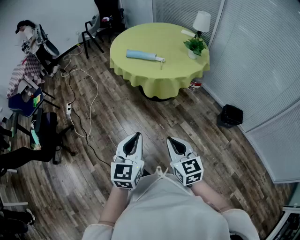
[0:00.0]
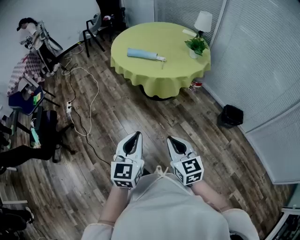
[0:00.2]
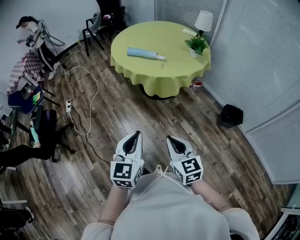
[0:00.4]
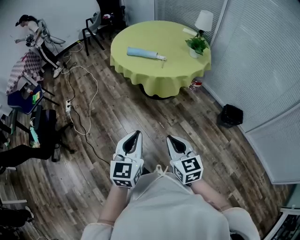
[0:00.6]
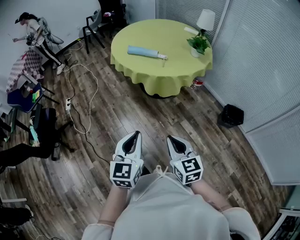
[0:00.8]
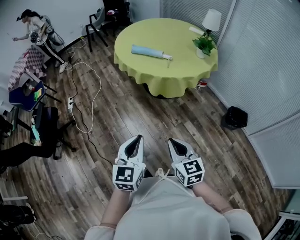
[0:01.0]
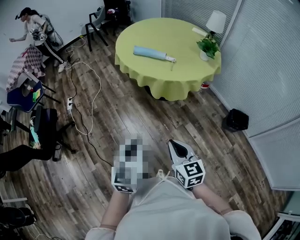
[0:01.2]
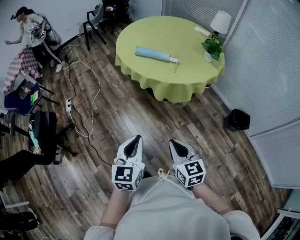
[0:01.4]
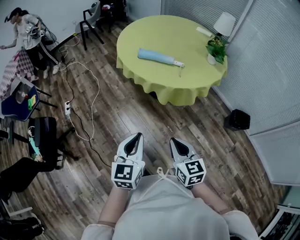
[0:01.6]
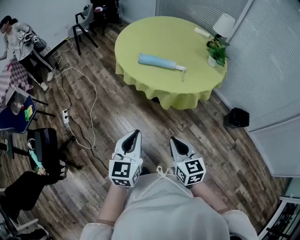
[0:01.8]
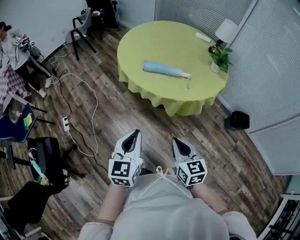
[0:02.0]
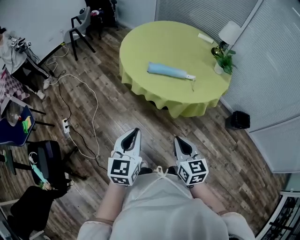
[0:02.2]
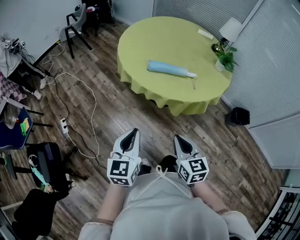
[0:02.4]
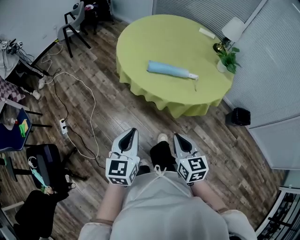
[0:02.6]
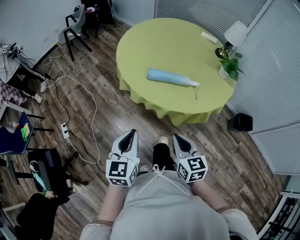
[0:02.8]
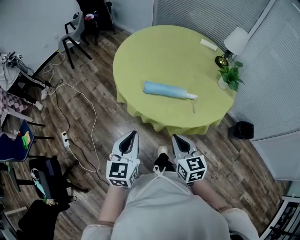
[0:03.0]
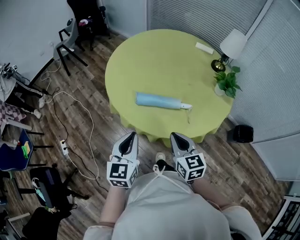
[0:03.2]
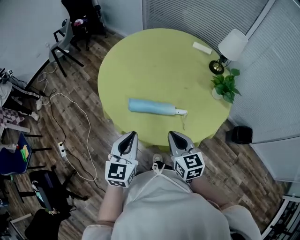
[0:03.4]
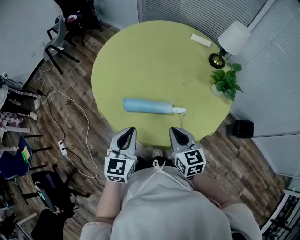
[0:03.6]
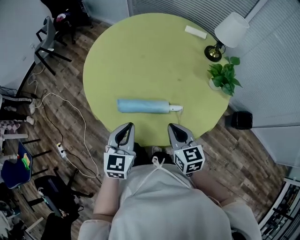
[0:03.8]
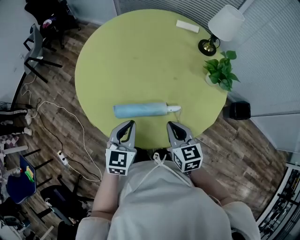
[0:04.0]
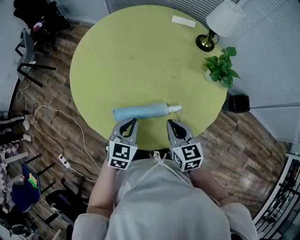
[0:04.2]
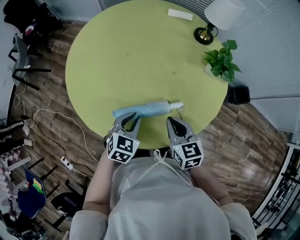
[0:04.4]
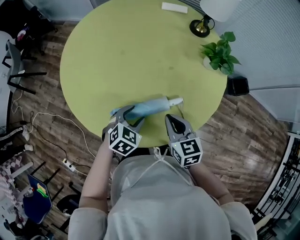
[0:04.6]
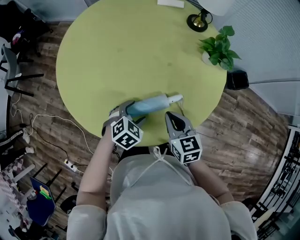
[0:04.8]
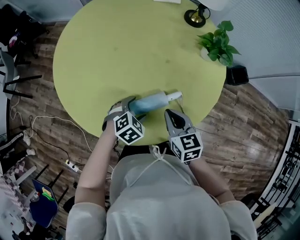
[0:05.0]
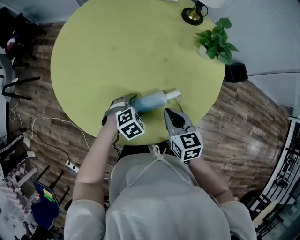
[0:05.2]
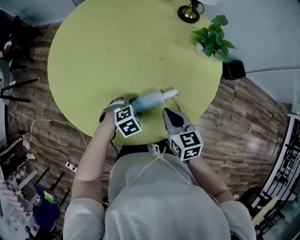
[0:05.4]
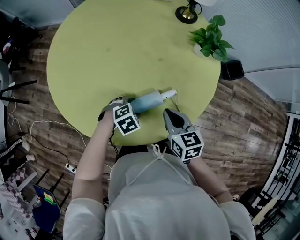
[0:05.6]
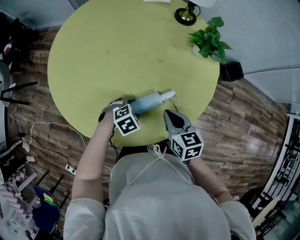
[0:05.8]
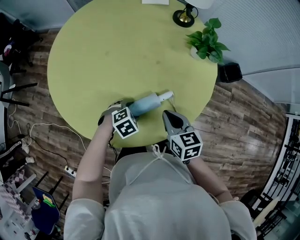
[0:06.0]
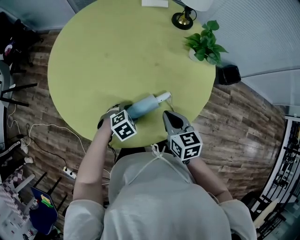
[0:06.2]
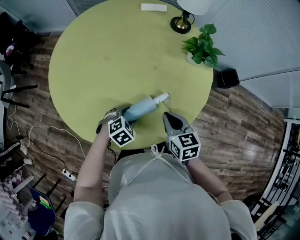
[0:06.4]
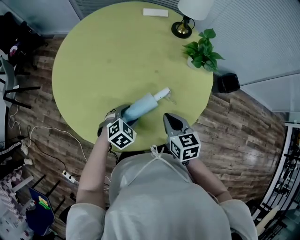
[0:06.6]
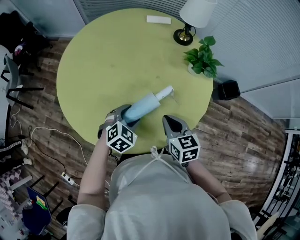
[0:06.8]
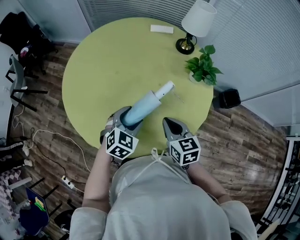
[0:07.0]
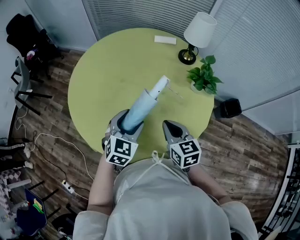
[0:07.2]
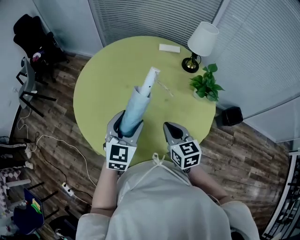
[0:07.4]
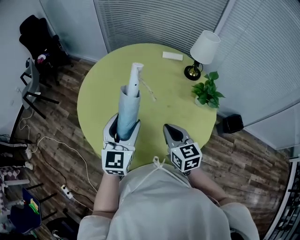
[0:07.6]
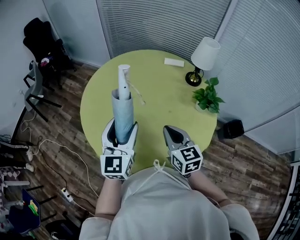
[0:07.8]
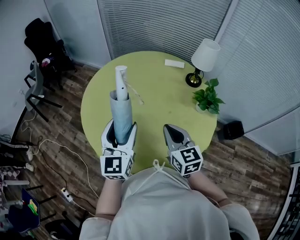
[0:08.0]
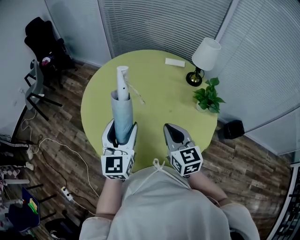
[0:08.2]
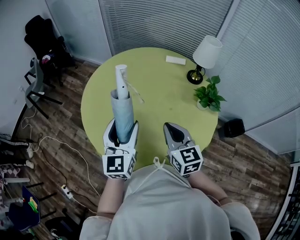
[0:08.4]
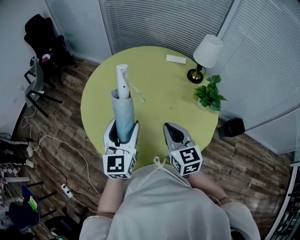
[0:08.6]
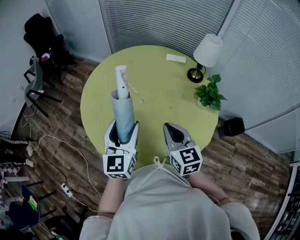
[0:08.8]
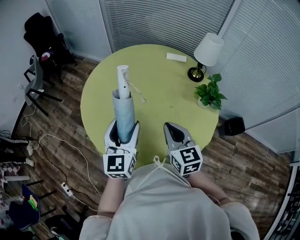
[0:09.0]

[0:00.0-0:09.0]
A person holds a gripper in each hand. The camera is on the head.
0:00.0 to 0:01.6: Both grippers move forward and to the left, roughly 25 cm.
0:01.6 to 0:03.0: The right gripper goes approximately 30 cm forward. The left gripper goes approximately 35 cm forward and to the left.
0:03.0 to 0:04.4: The right gripper ends up about 30 cm from where it was; the left gripper moves about 40 cm, and changes its angle by approximately 50 degrees.
0:04.4 to 0:06.0: The right gripper changes place by roughly 5 cm, while the left gripper moves downward, approximately 10 cm, rotates roughly 50 degrees, and opens its fingers.
0:06.0 to 0:07.6: The right gripper shifts some 15 cm upward, and turns by about 20 degrees. The left gripper heads upward, covering roughly 35 cm, and tilts its fingers about 60 degrees upward.
0:07.6 to 0:09.0: The grippers stay close to where they were, moving slightly.

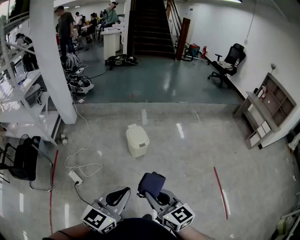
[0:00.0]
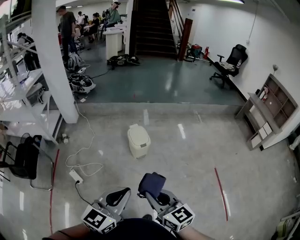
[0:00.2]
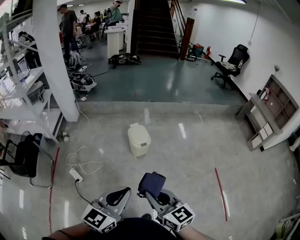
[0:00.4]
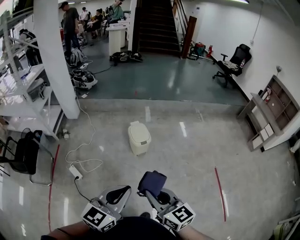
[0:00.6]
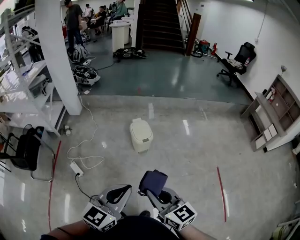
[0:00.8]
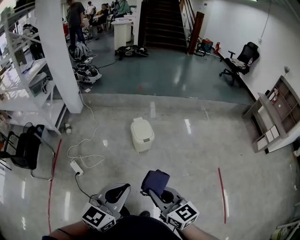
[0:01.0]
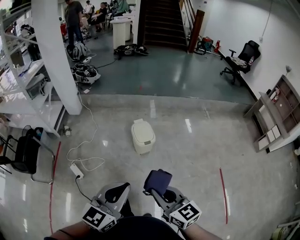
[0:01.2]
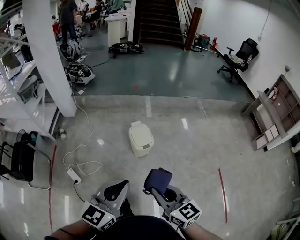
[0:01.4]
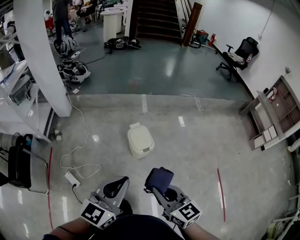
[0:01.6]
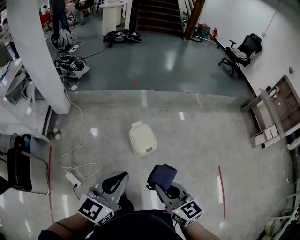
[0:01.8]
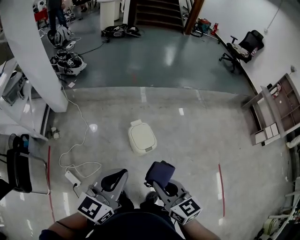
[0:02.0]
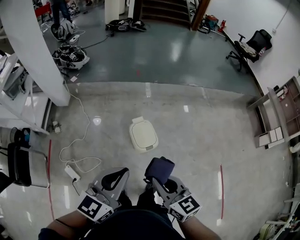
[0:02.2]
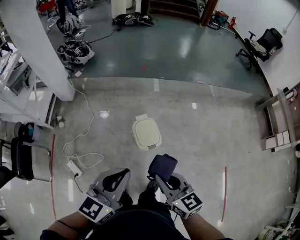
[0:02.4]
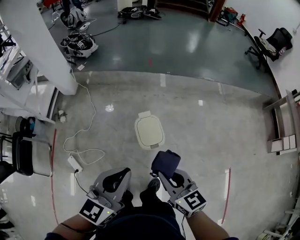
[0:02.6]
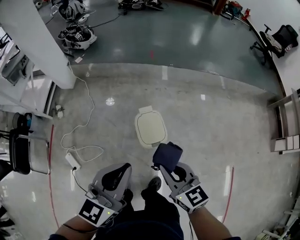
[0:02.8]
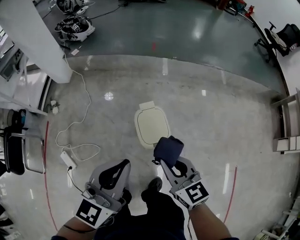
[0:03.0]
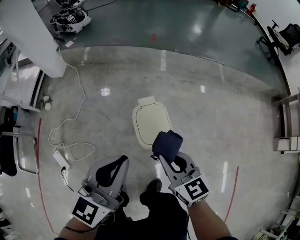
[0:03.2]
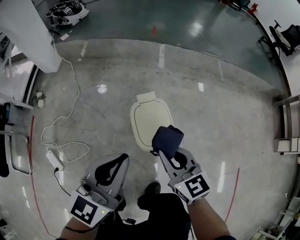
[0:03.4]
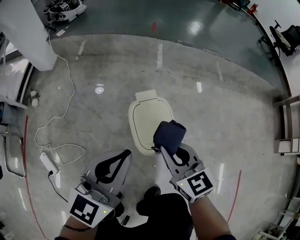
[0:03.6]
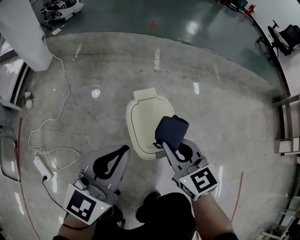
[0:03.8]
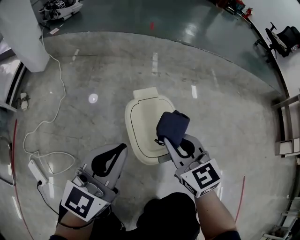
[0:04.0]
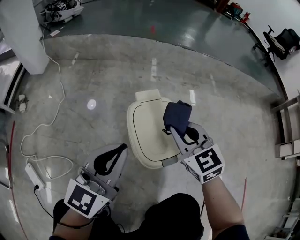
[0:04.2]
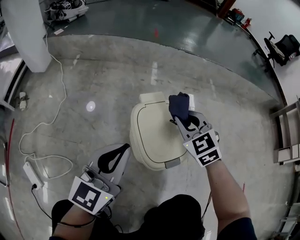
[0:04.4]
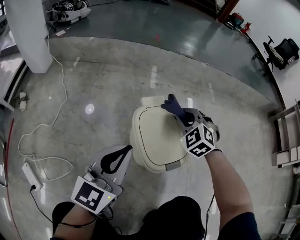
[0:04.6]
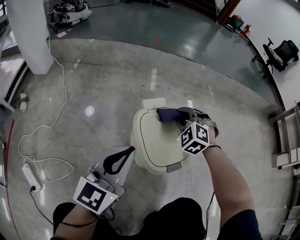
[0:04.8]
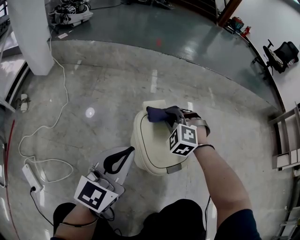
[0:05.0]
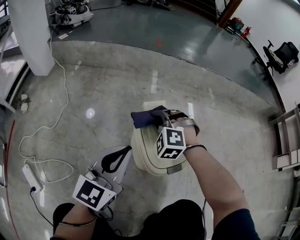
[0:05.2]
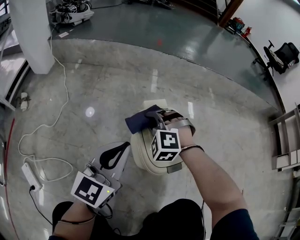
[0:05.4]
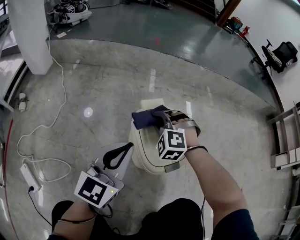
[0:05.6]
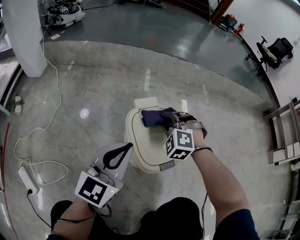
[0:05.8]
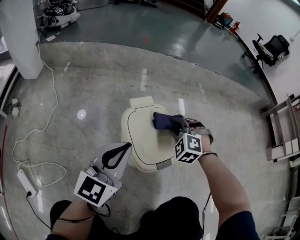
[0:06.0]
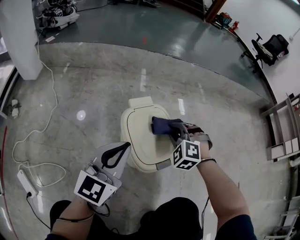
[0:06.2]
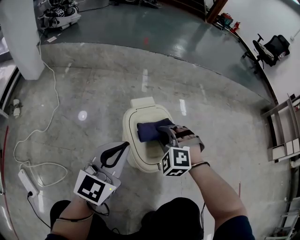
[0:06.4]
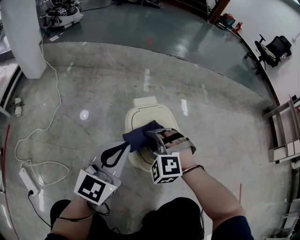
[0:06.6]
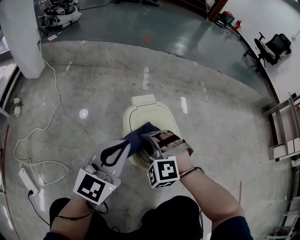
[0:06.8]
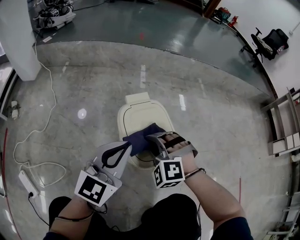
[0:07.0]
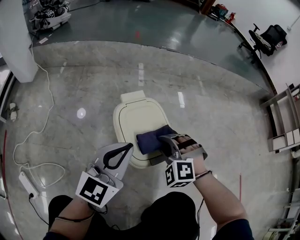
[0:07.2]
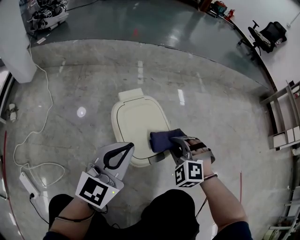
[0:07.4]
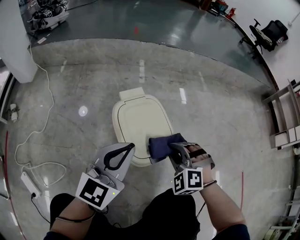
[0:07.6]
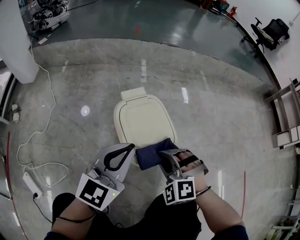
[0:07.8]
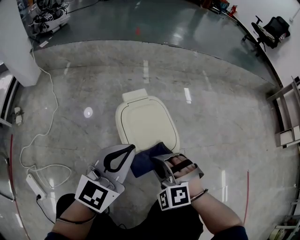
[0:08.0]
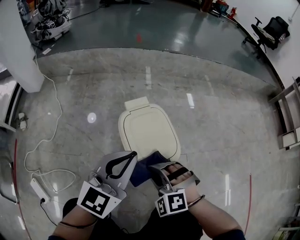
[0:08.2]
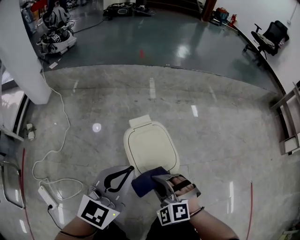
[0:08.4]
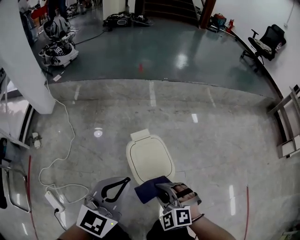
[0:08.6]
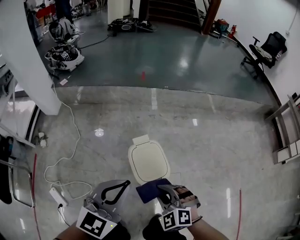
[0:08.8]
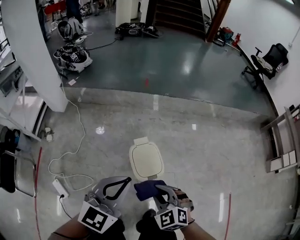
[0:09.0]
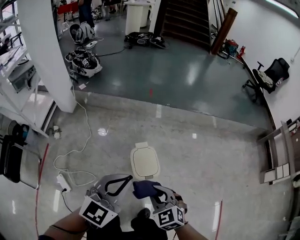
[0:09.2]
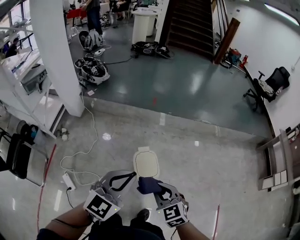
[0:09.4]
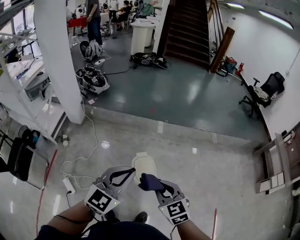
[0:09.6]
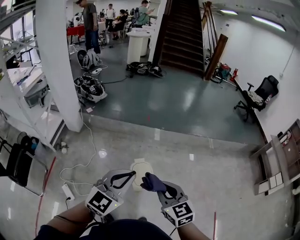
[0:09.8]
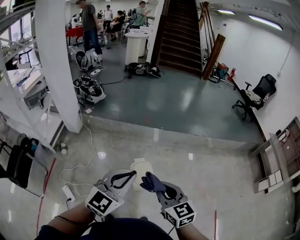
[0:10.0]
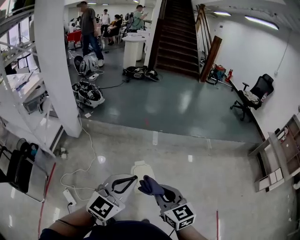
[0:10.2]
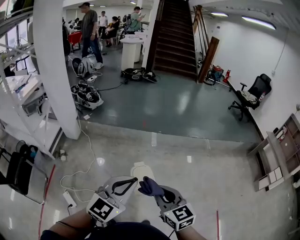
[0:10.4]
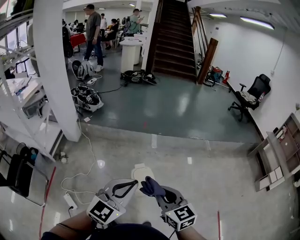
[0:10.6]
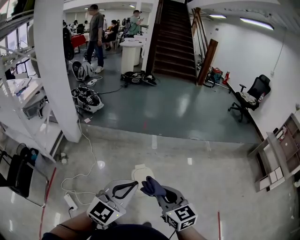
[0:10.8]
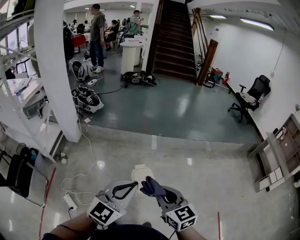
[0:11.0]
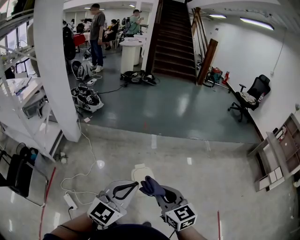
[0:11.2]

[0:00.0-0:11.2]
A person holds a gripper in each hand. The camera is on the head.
0:00.0 to 0:01.6: The two grippers go about 25 cm forward.
0:01.6 to 0:03.2: Both grippers travel together forward and downward, some 50 cm.
0:03.2 to 0:04.8: The left gripper goes about 30 cm downward, while the right gripper travels downward and forward by roughly 40 cm, and rolls counterclockwise, seen from behind, by approximately 60 degrees.
0:04.8 to 0:06.4: The right gripper moves left and right over about 15 cm, changing direction 2 times.
0:06.4 to 0:08.0: The left gripper goes about 5 cm to the right, while the right gripper swings left and right, roughly 15 cm each way, with 2 reversals.
0:08.0 to 0:09.6: Both grippers travel together upward, some 70 cm. The right gripper rolls clockwise, seen from behind, by approximately 50 degrees.
0:09.6 to 0:11.2: The left gripper moves backward, roughly 10 cm, while the right gripper is displaced upward and backward by some 10 cm.

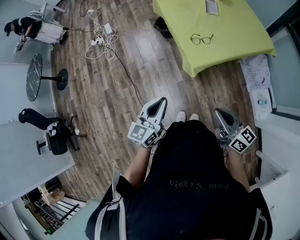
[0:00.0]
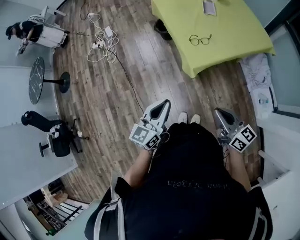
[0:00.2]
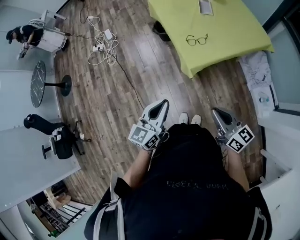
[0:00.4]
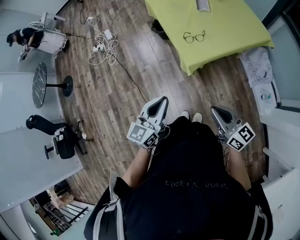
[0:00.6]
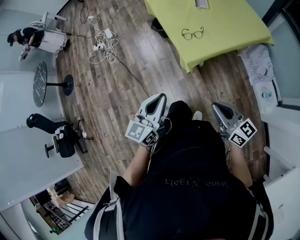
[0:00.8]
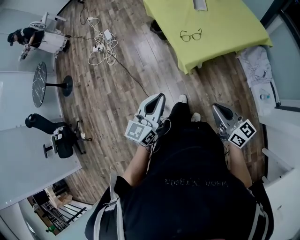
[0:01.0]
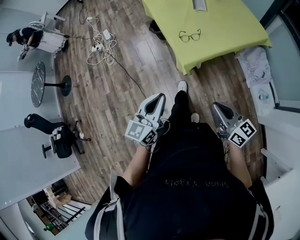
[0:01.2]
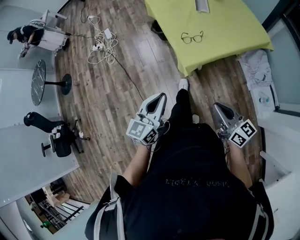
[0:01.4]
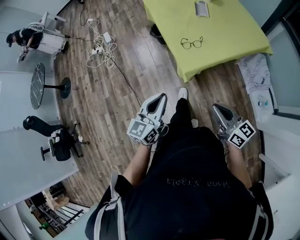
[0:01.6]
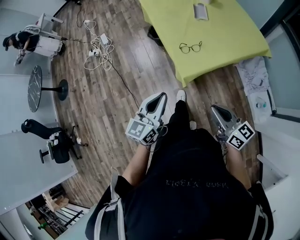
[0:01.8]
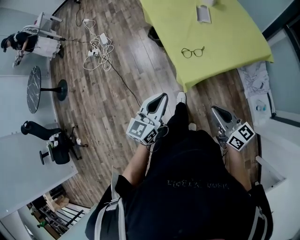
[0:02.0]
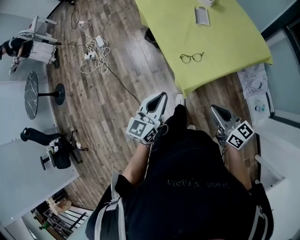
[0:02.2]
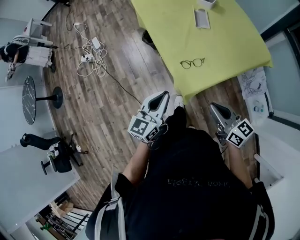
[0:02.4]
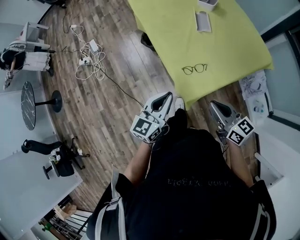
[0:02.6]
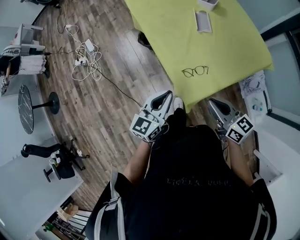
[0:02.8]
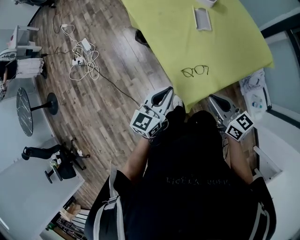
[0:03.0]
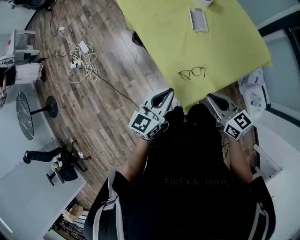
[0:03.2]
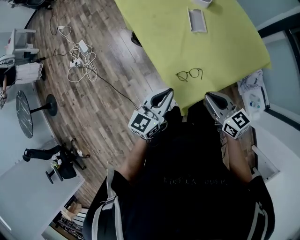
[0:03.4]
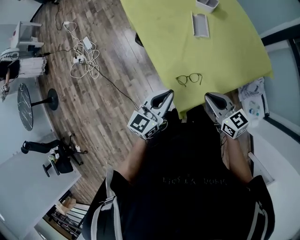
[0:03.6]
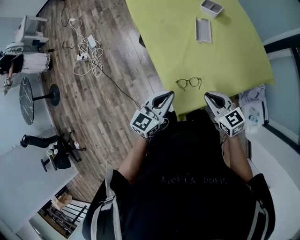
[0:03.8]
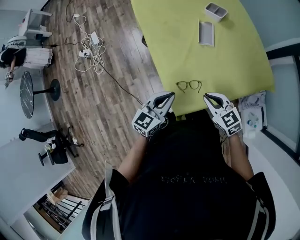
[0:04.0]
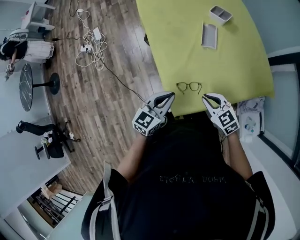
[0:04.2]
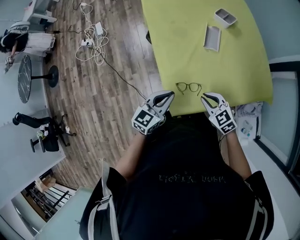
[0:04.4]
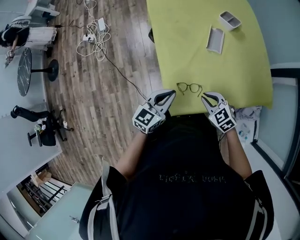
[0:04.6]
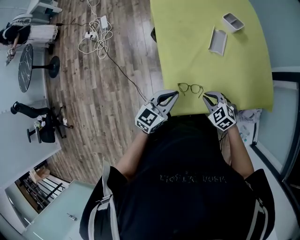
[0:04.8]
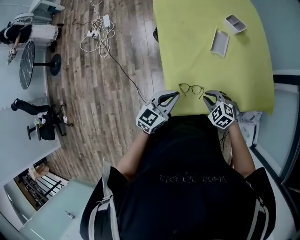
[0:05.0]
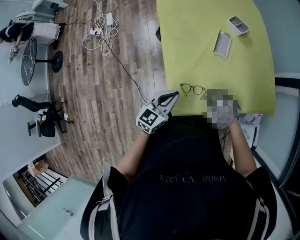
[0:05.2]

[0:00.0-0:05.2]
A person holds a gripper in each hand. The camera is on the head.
0:00.0 to 0:01.8: Both grippers travel together to the right and forward, some 10 cm.
0:01.8 to 0:03.4: The grippers both shift forward by some 25 cm.
0:03.4 to 0:05.2: The left gripper moves approximately 5 cm, while the right gripper shifts about 15 cm downward and forward, and tips its fingers downward by roughly 40 degrees.
